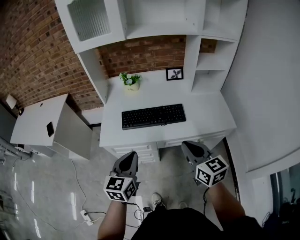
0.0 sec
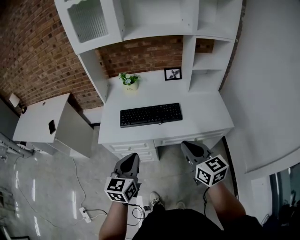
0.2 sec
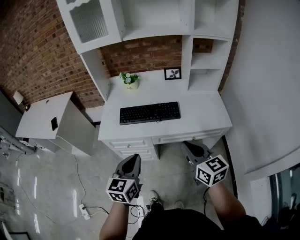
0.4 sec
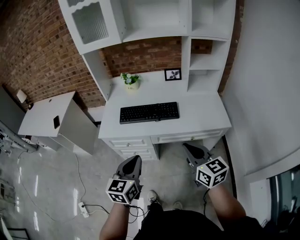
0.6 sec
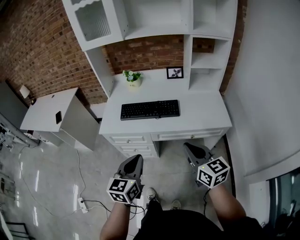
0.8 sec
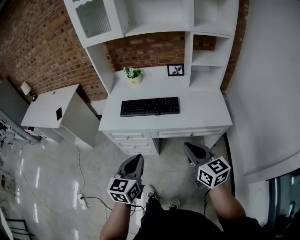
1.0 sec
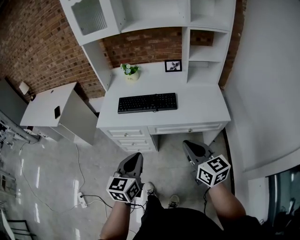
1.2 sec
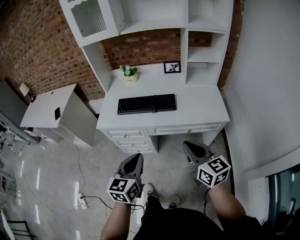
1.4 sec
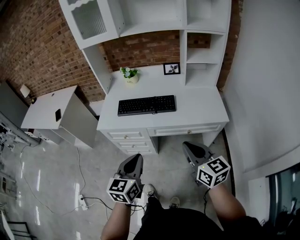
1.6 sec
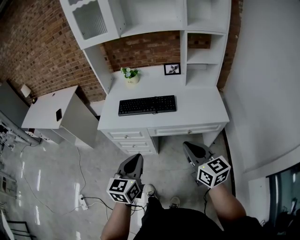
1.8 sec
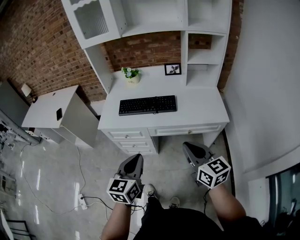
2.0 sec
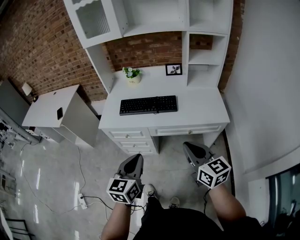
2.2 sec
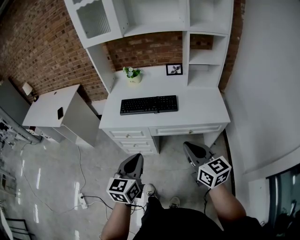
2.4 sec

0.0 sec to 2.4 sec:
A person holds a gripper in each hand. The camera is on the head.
0.0 sec to 1.2 sec: The two grippers go roughly 15 cm backward and to the right.
1.2 sec to 2.4 sec: The grippers make only small movements.

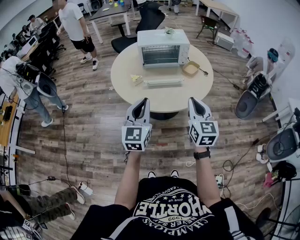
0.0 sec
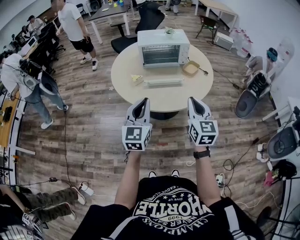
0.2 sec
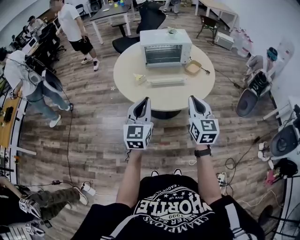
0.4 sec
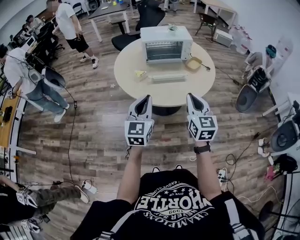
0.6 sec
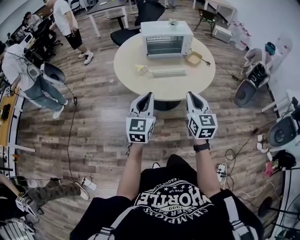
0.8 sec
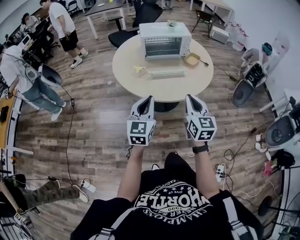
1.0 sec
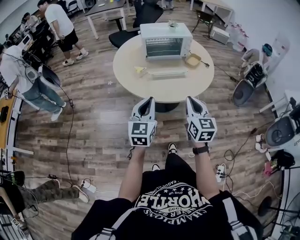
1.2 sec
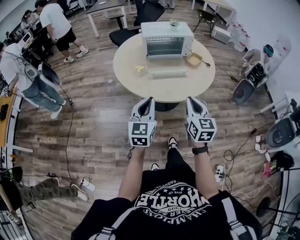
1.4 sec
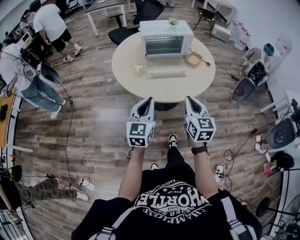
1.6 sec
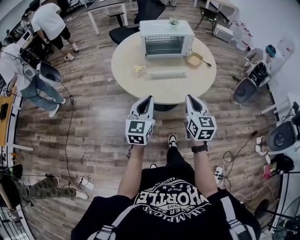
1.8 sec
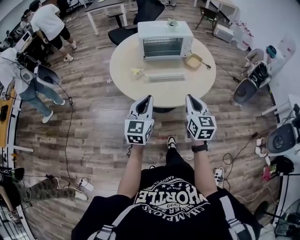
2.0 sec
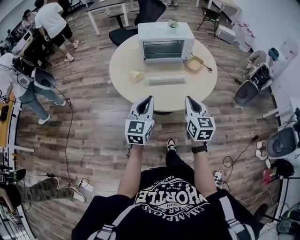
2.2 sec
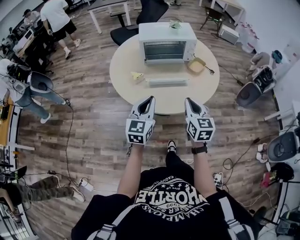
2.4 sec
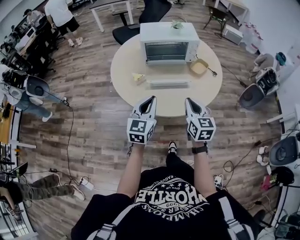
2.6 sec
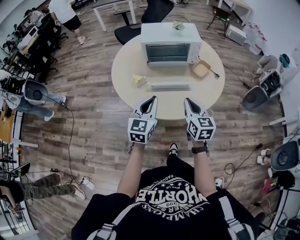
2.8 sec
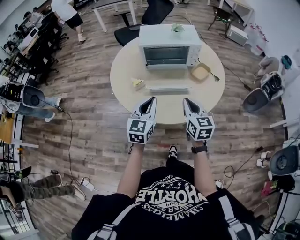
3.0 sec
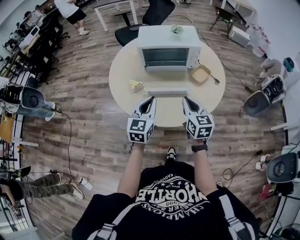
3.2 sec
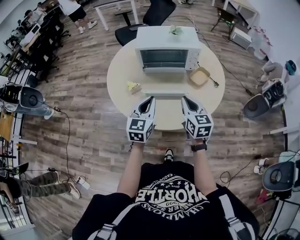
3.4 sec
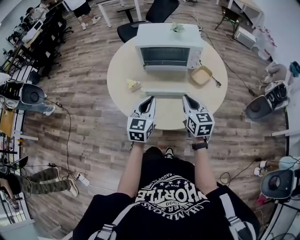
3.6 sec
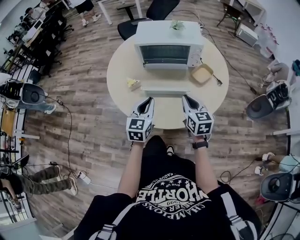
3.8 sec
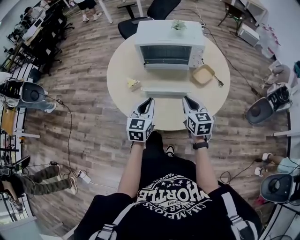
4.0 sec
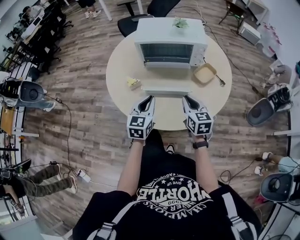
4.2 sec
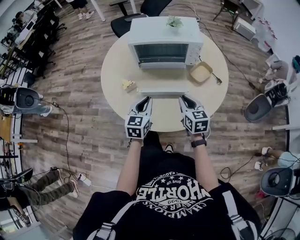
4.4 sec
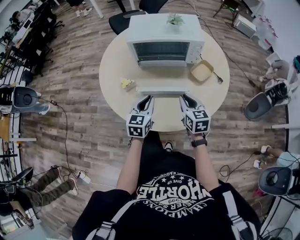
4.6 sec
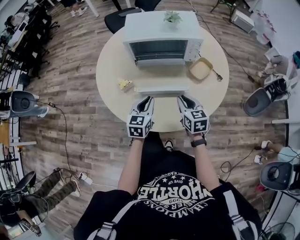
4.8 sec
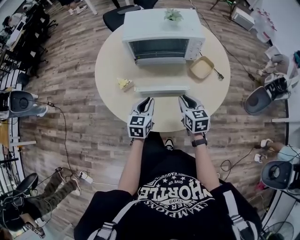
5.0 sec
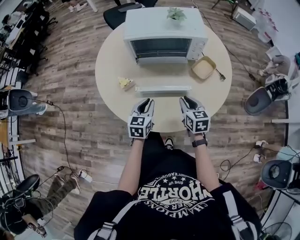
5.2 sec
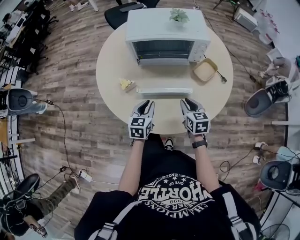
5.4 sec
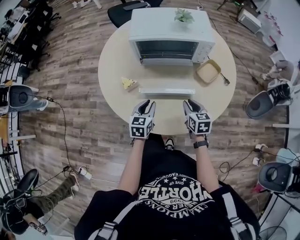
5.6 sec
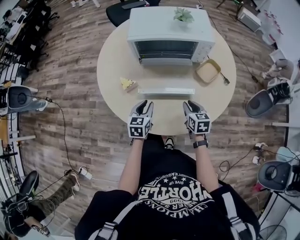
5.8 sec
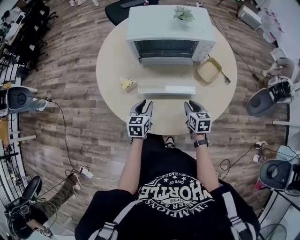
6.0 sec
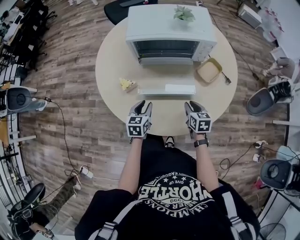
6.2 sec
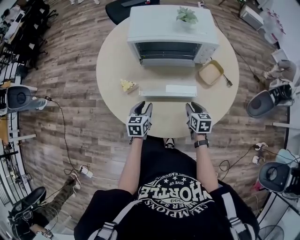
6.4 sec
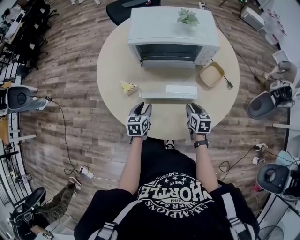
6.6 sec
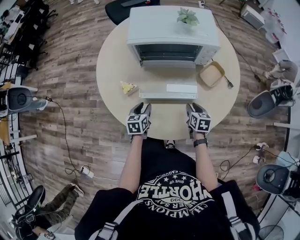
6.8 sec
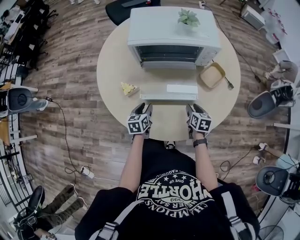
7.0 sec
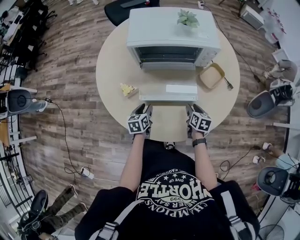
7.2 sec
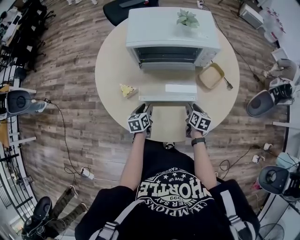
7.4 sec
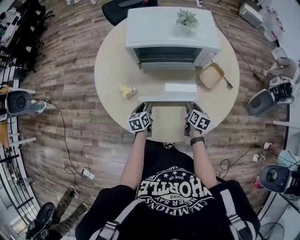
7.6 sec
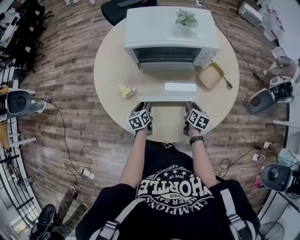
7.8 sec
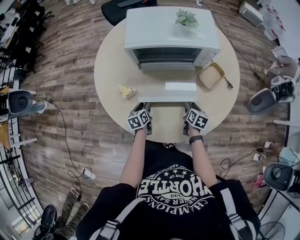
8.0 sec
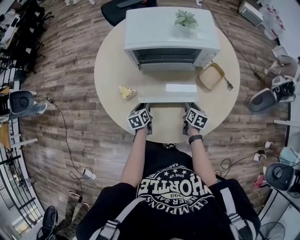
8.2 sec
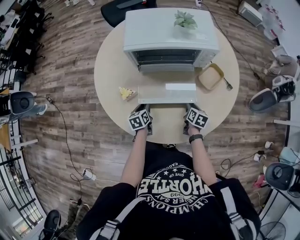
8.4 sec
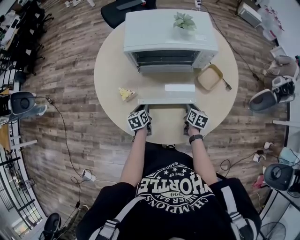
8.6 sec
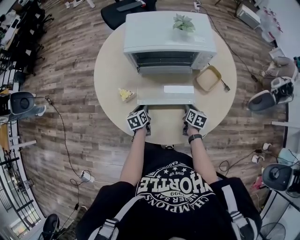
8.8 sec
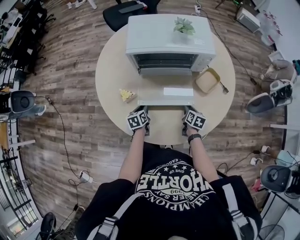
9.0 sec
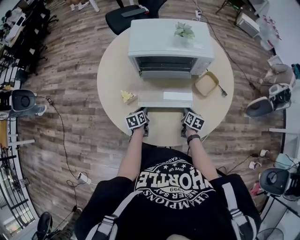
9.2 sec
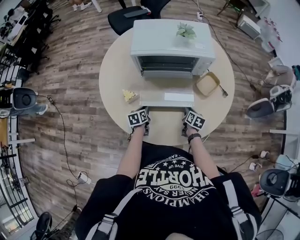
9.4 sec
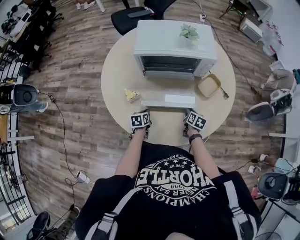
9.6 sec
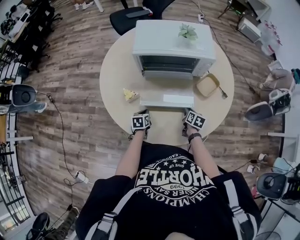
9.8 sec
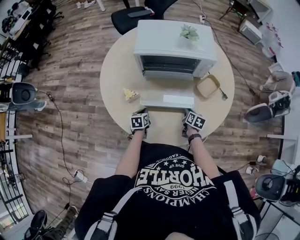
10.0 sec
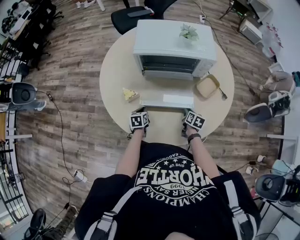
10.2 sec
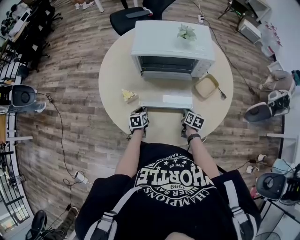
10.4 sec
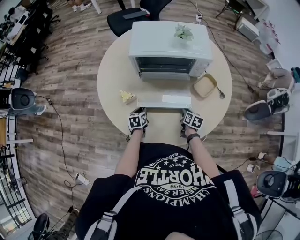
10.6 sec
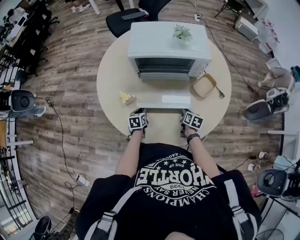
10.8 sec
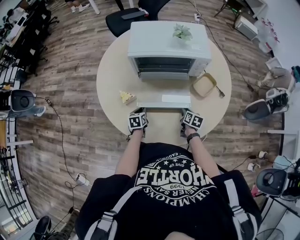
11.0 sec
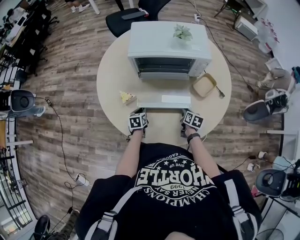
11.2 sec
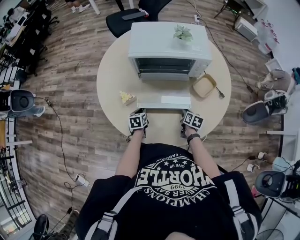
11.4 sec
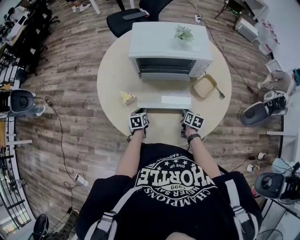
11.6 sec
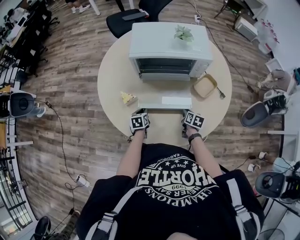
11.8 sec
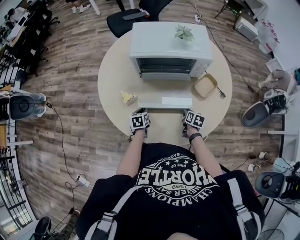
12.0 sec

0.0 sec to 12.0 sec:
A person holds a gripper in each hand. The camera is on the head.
0.0 sec to 1.6 sec: The right gripper is displaced to the left by about 5 cm. The left gripper heads downward, covering about 5 cm.
1.6 sec to 3.0 sec: The two grippers go about 20 cm forward.
3.0 sec to 4.4 sec: The left gripper shifts about 15 cm downward and forward. The right gripper shifts approximately 15 cm forward and downward.
4.4 sec to 6.0 sec: The grippers both shift downward by about 10 cm. The left gripper opens its fingers.
6.0 sec to 7.6 sec: Both grippers travel together downward, approximately 10 cm. The right gripper swivels approximately 30 degrees, while the left gripper rotates about 20 degrees.
7.6 sec to 9.0 sec: The right gripper closes its fingers.
9.0 sec to 10.4 sec: The grippers move only a little.
10.4 sec to 12.0 sec: Both grippers stay put.

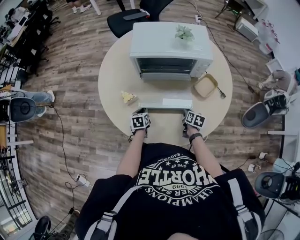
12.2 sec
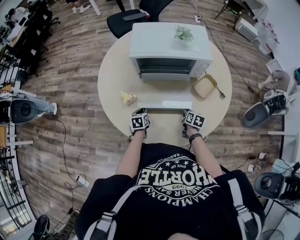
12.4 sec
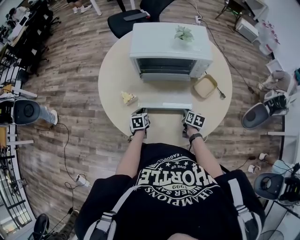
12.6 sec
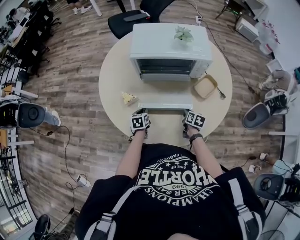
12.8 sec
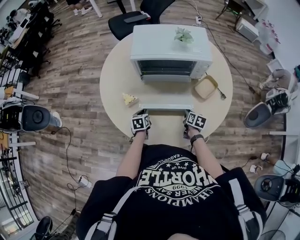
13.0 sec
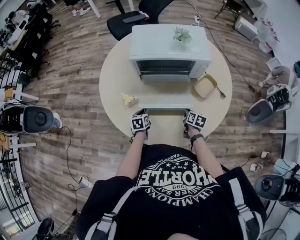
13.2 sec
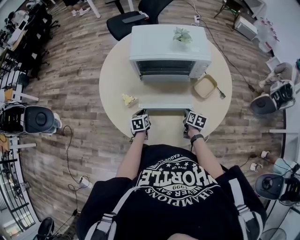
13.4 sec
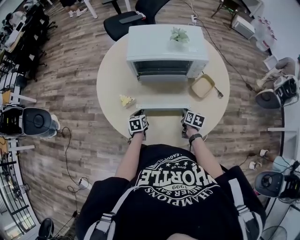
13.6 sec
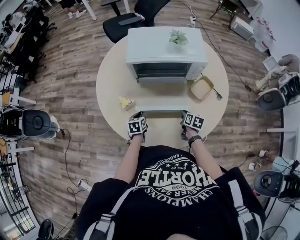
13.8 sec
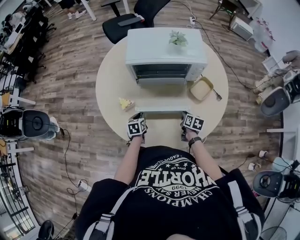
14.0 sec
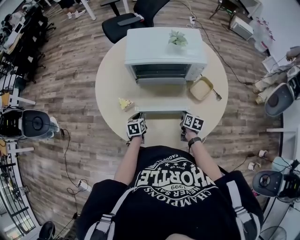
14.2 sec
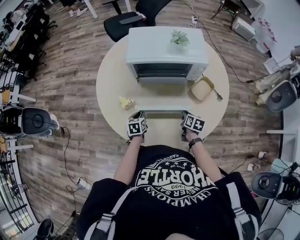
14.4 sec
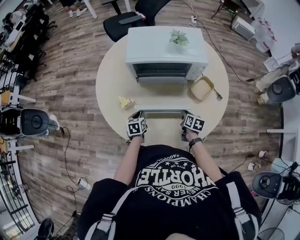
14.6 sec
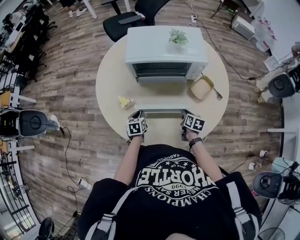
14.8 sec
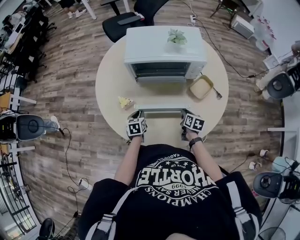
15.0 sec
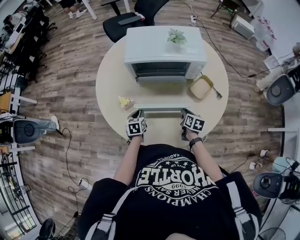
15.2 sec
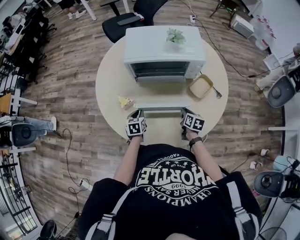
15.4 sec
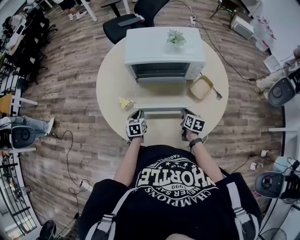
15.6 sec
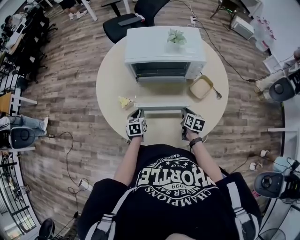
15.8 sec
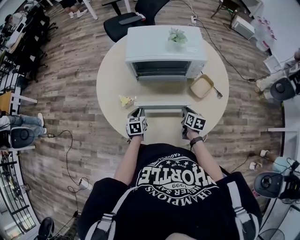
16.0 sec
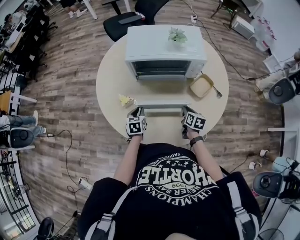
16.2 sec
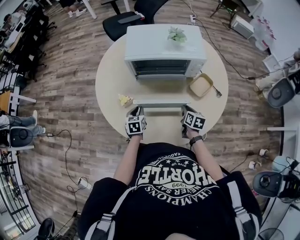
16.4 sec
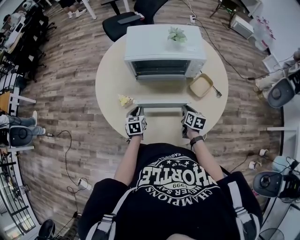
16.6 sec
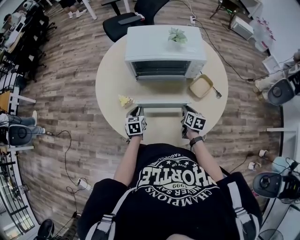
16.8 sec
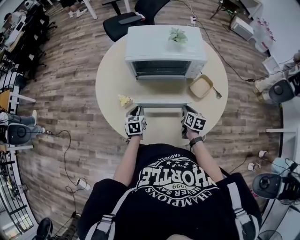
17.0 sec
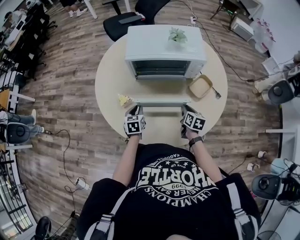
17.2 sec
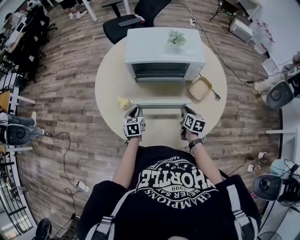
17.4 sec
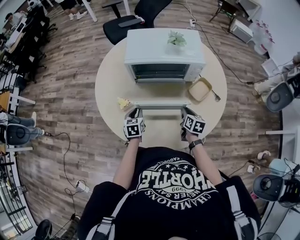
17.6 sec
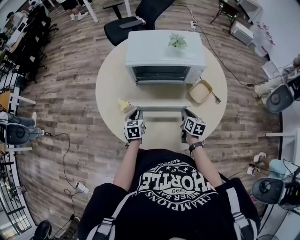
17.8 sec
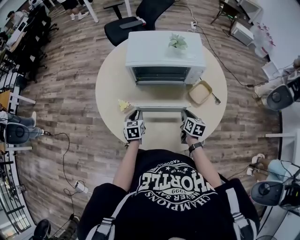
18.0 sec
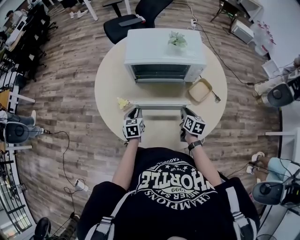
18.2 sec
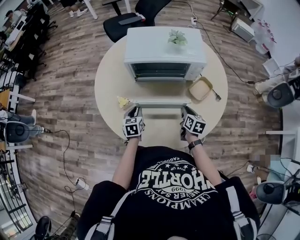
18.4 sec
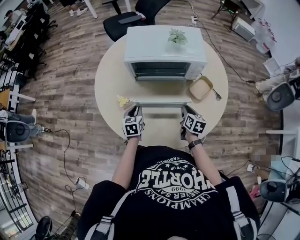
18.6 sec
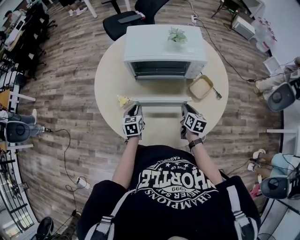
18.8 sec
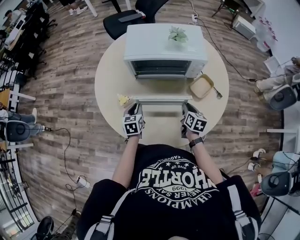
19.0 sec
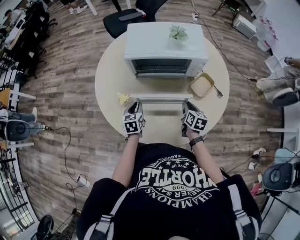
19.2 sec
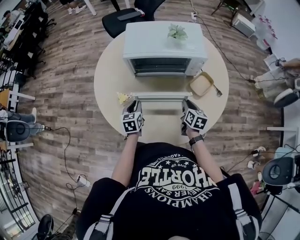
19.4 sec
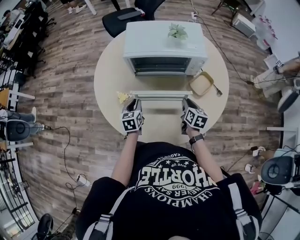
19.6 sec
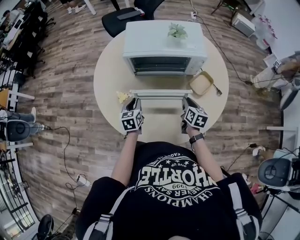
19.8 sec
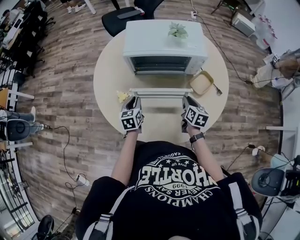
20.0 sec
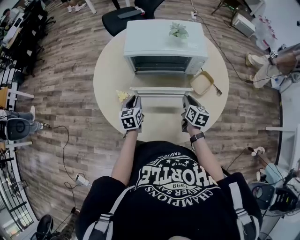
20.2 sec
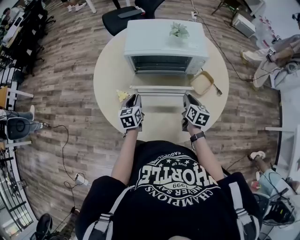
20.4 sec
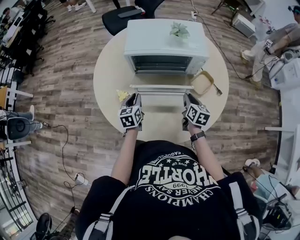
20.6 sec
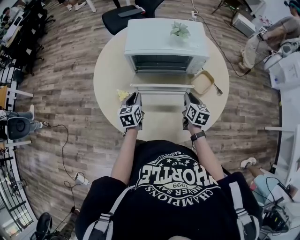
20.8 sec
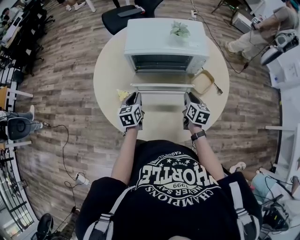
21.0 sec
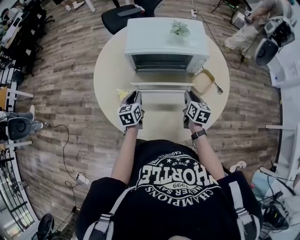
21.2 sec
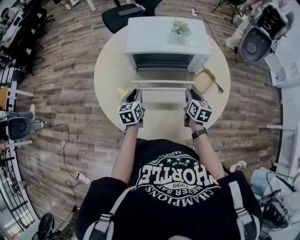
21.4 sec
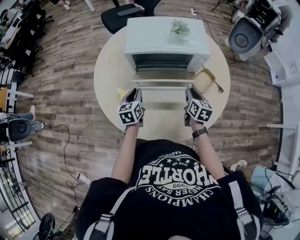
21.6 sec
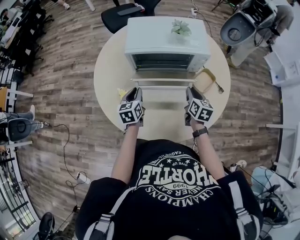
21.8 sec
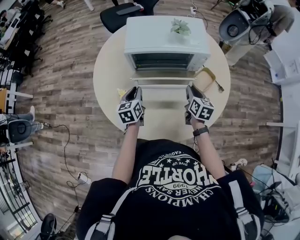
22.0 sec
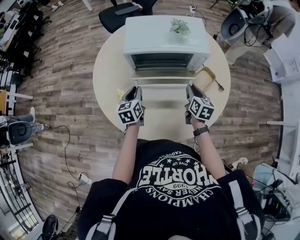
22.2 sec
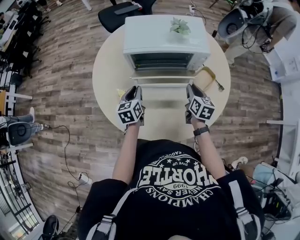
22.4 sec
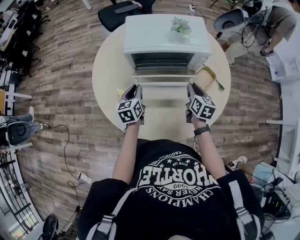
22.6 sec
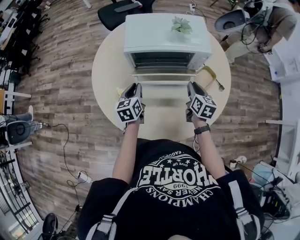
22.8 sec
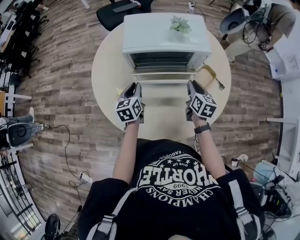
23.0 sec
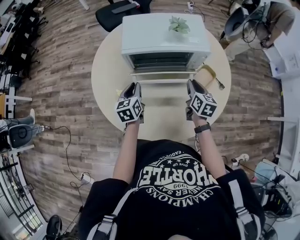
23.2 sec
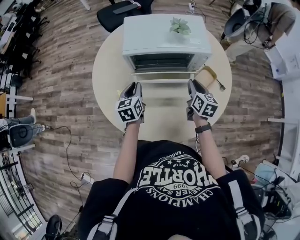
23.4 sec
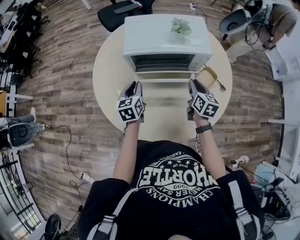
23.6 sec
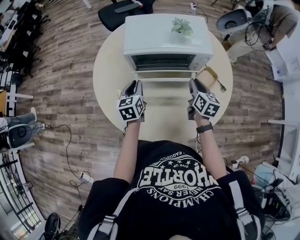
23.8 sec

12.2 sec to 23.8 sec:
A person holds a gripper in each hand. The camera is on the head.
12.2 sec to 15.0 sec: The grippers stay close to where they were, moving slightly.
15.0 sec to 18.0 sec: The grippers make only small movements.
18.0 sec to 19.4 sec: There are only small adjustments of the grippers.
19.4 sec to 21.0 sec: There are only small adjustments of the grippers.
21.0 sec to 22.4 sec: The grippers make only small movements.
22.4 sec to 23.8 sec: The grippers move only a little.
